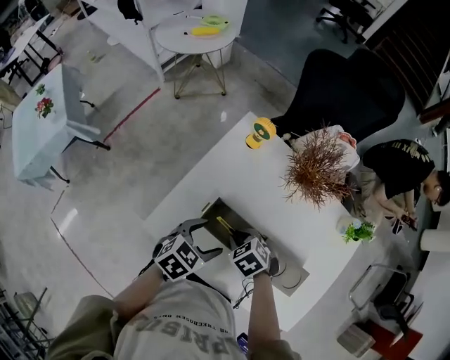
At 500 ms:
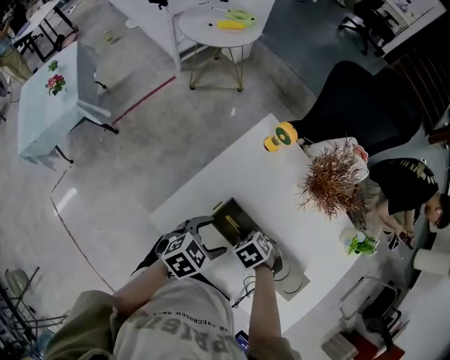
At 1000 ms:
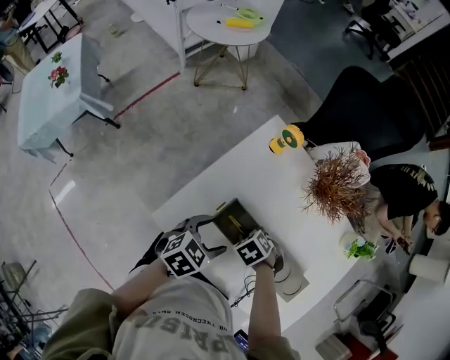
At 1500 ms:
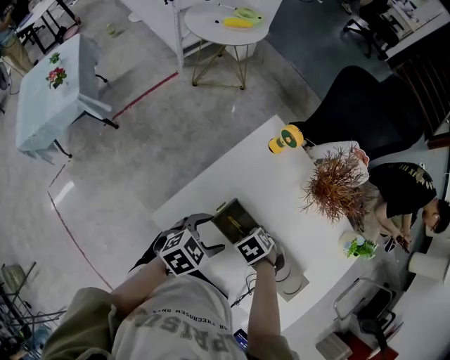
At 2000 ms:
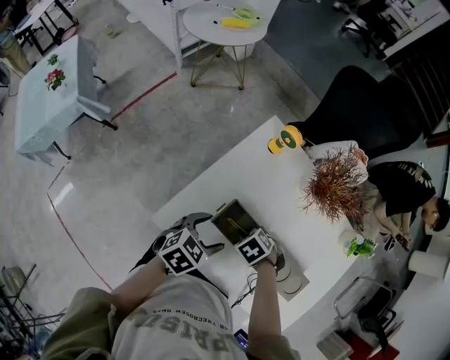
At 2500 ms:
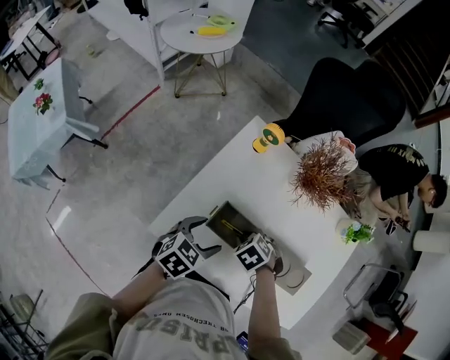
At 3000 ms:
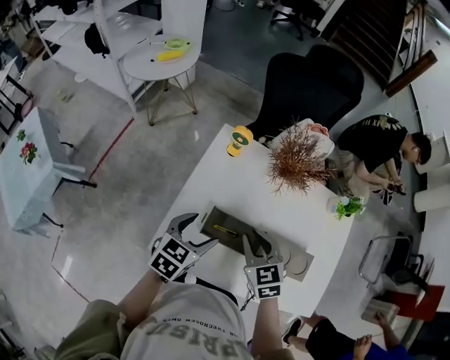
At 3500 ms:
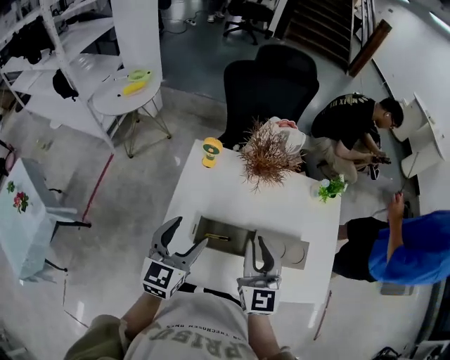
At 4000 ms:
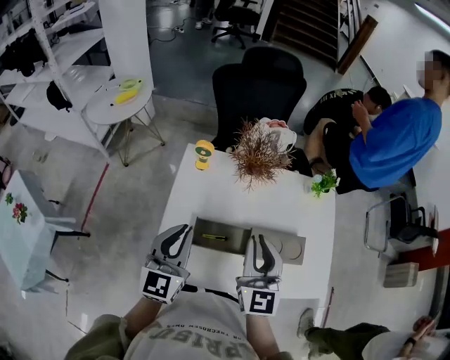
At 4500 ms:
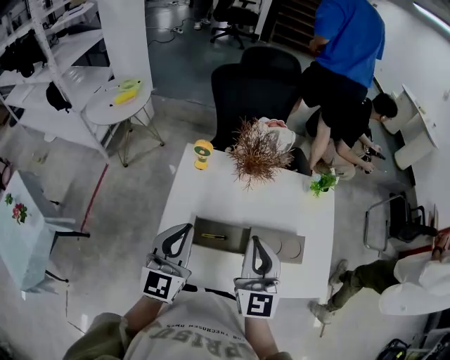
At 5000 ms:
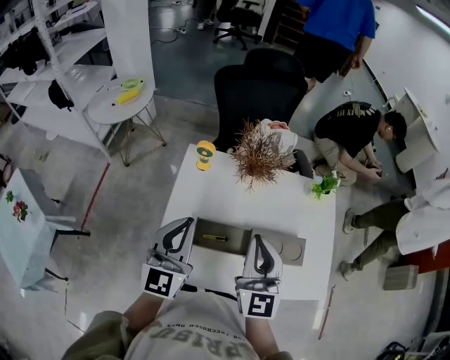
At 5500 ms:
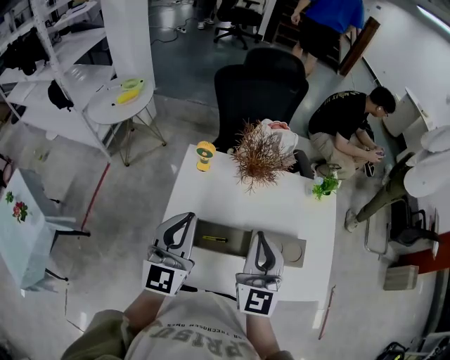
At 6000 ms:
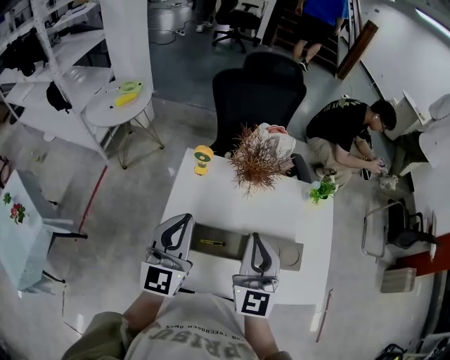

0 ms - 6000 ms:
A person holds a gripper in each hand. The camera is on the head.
0 ms - 2000 ms: The grippers stay close to where they were, moving slightly.
2000 ms - 4000 ms: The left gripper heads upward, covering some 20 cm, tips its fingers upward by roughly 40 degrees, and closes. The right gripper travels upward by roughly 30 cm, and tilts its fingers about 80 degrees upward.
4000 ms - 6000 ms: The left gripper heads upward, covering some 5 cm.

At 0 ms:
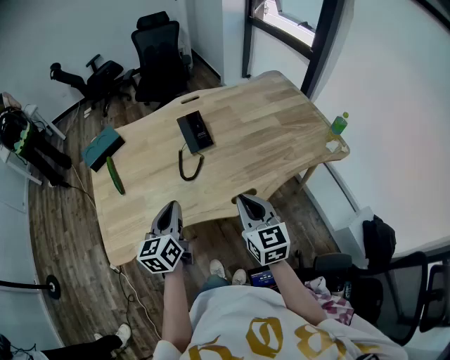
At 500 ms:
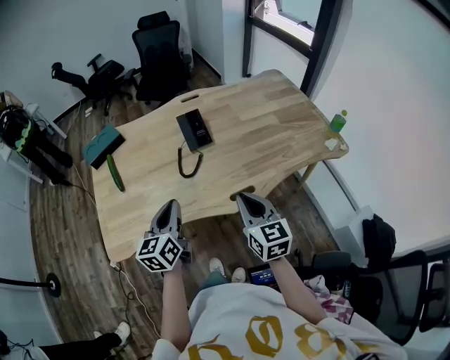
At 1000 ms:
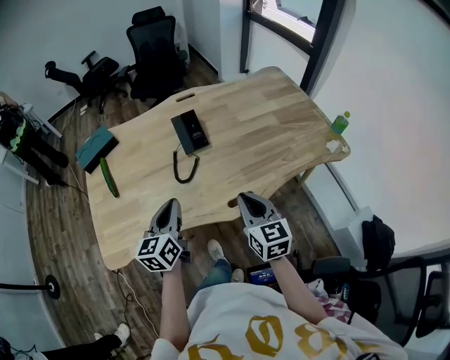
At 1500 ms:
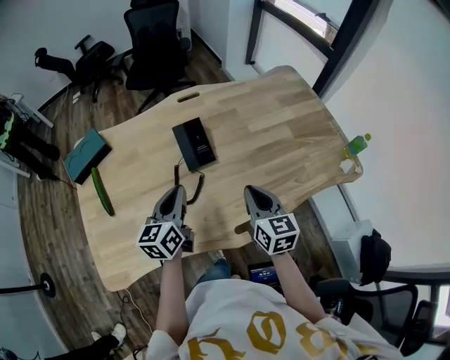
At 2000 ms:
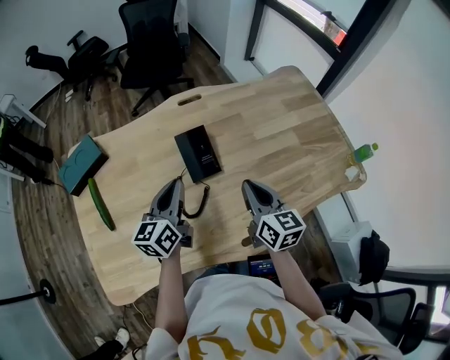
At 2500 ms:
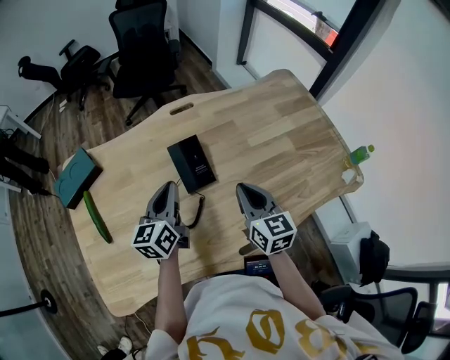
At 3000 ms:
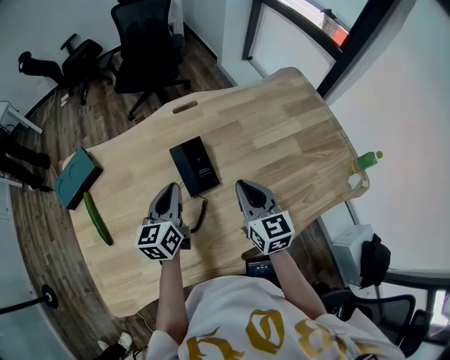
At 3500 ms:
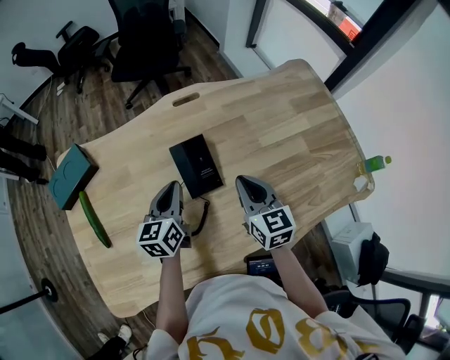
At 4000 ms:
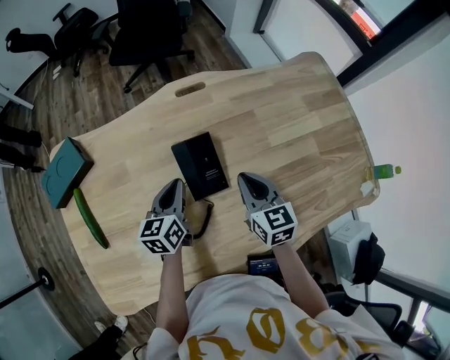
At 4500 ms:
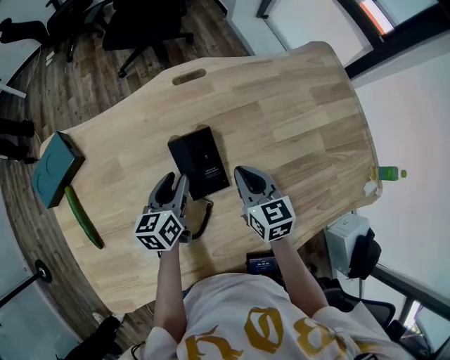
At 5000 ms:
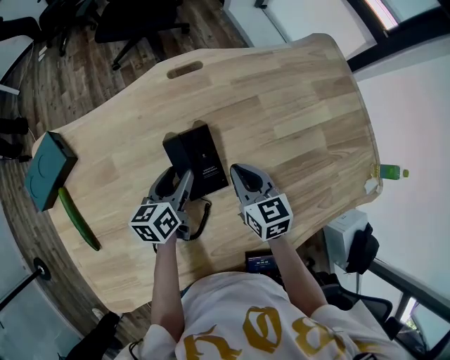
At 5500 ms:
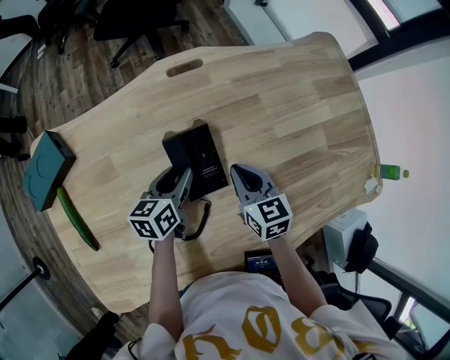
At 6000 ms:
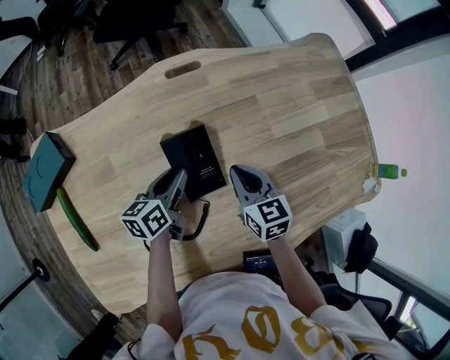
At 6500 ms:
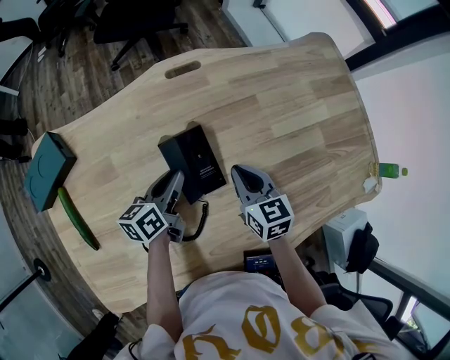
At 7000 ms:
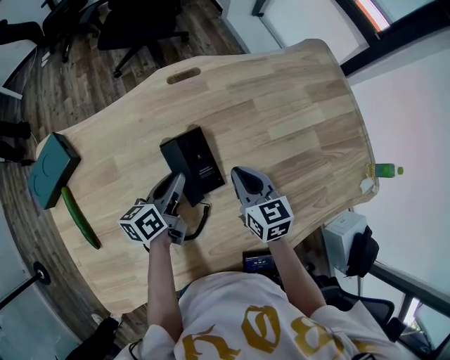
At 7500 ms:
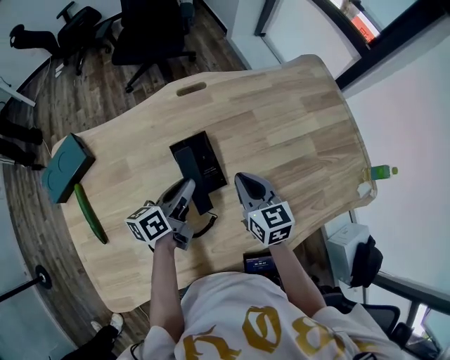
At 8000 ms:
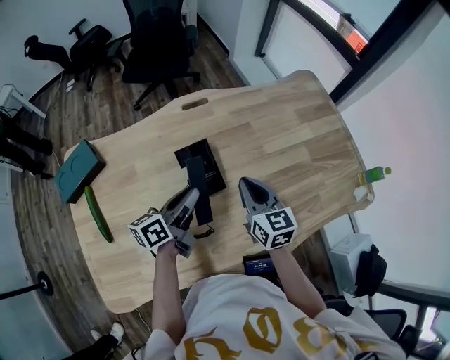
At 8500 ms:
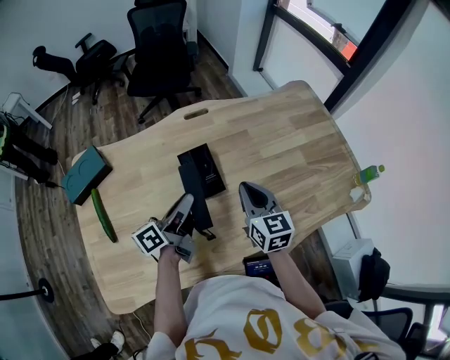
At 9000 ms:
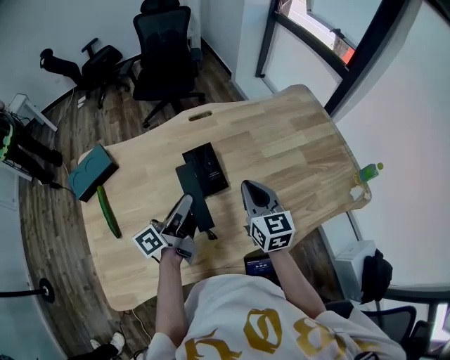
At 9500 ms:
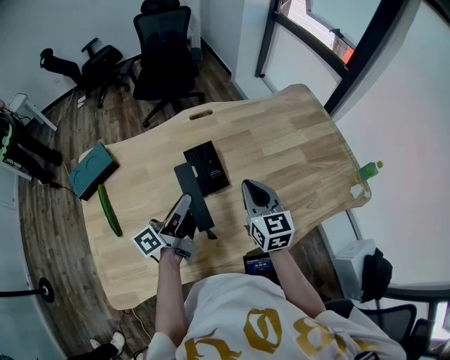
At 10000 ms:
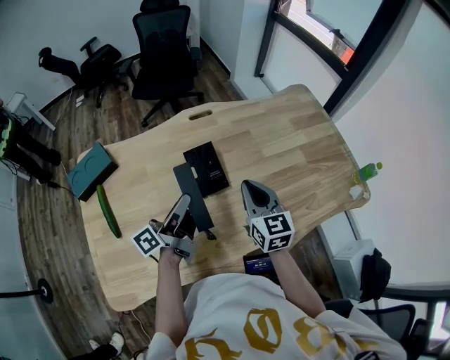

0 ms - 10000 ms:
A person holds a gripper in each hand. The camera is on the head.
0 ms - 2000 ms: Both grippers travel together forward, approximately 25 cm.
2000 ms - 4000 ms: The left gripper travels downward and forward by approximately 15 cm. The right gripper heads forward and downward, covering roughly 15 cm.
4000 ms - 6000 ms: The left gripper moves some 5 cm, changes its angle by approximately 20 degrees, and opens its fingers. Meanwhile the right gripper travels downward by about 5 cm.
6000 ms - 8000 ms: The left gripper travels upward and backward by about 15 cm. The right gripper goes approximately 10 cm upward.
8000 ms - 10000 ms: The left gripper moves backward, some 5 cm, and changes its angle by some 30 degrees, while the right gripper ends up approximately 5 cm from where it was.

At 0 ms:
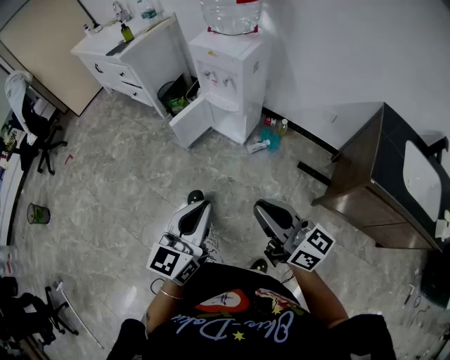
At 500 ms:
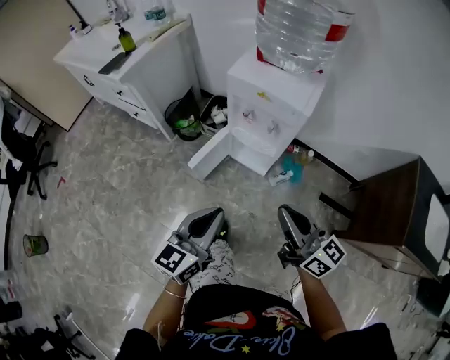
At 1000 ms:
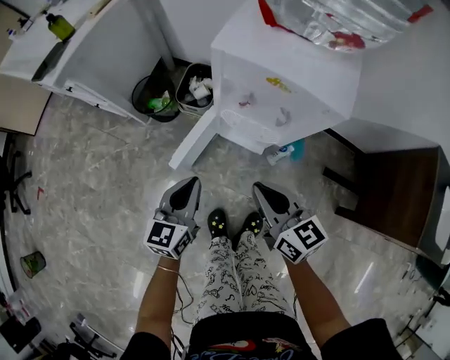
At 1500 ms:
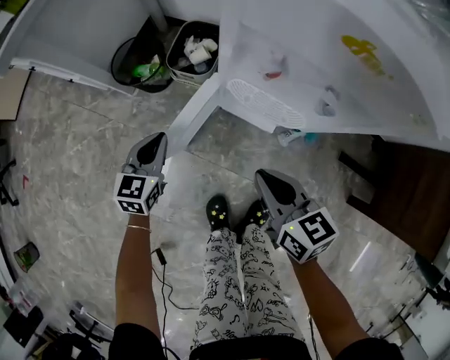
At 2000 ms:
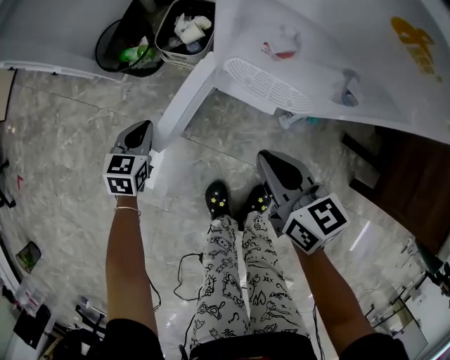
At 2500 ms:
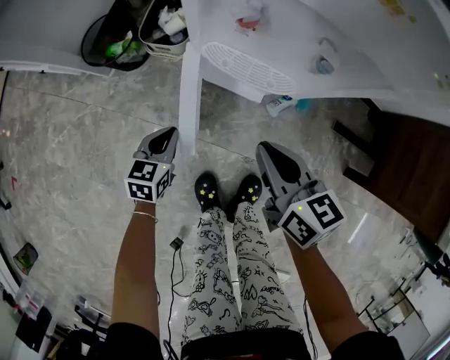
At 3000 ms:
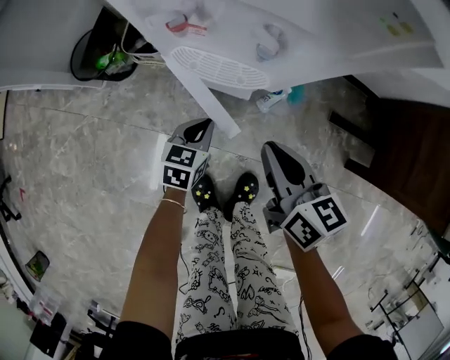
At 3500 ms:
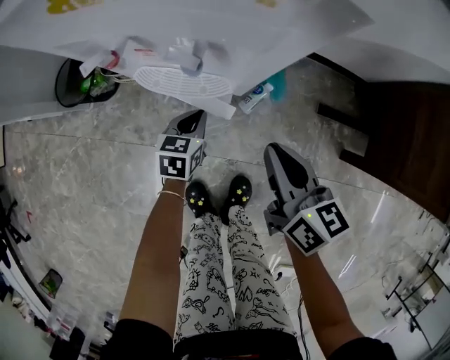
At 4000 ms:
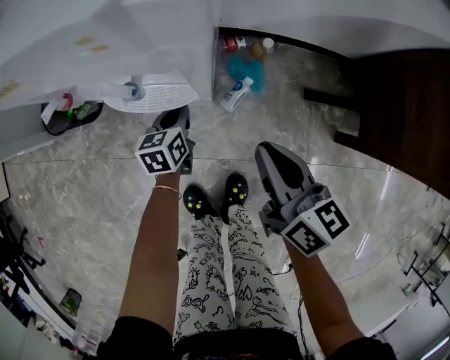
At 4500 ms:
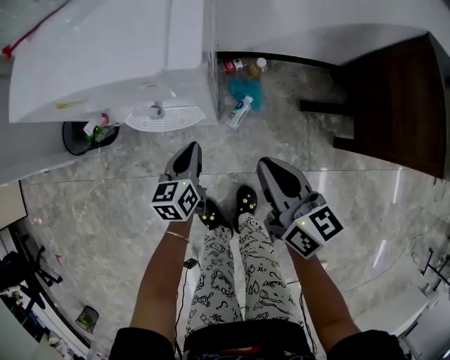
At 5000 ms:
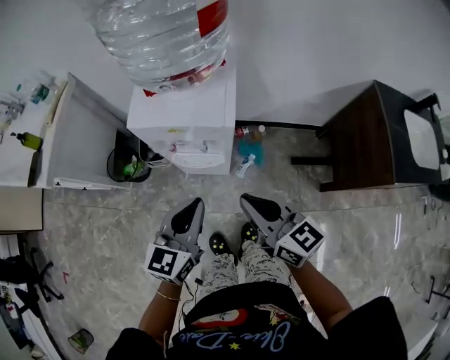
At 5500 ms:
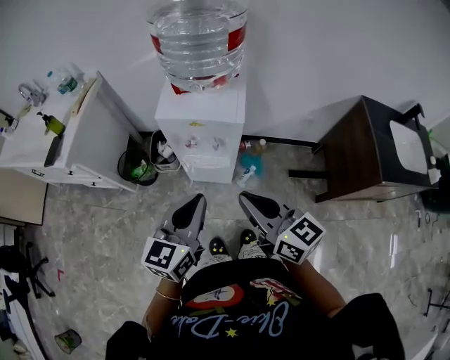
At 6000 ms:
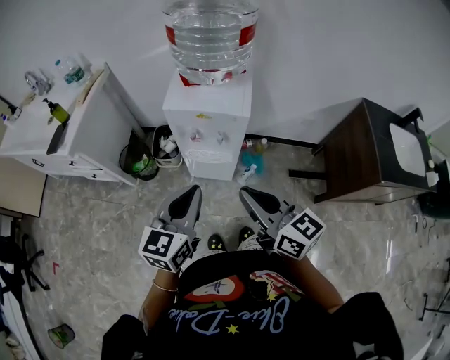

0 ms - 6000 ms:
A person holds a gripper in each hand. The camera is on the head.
0 ms - 2000 ms: The pair of grippers is taken forward and to the left, some 60 cm. The grippers both shift downward by about 40 cm. The left gripper tips its fingers downward by roughly 40 degrees. Meanwhile the right gripper angles its fingers downward, by about 40 degrees.
2000 ms - 4000 ms: The two grippers go about 30 cm to the right. The right gripper changes its angle by approximately 30 degrees.
4000 ms - 6000 ms: The left gripper moves upward and backward, about 60 cm, and changes its angle by about 30 degrees, while the right gripper moves upward, backward and to the left, about 40 cm, and rotates some 30 degrees.

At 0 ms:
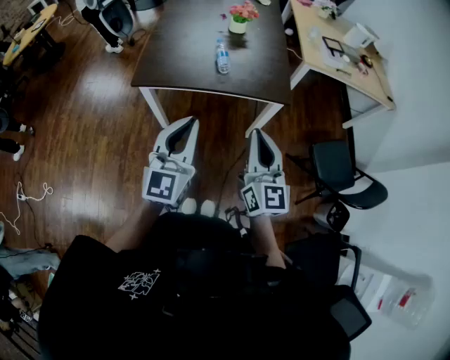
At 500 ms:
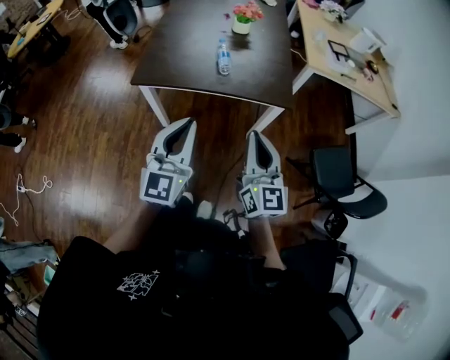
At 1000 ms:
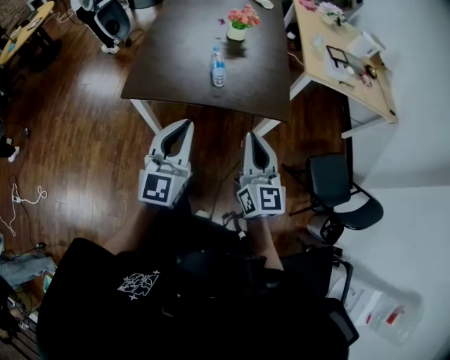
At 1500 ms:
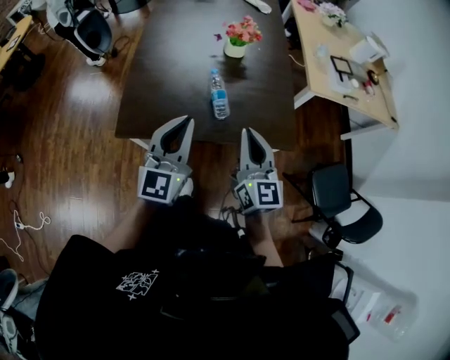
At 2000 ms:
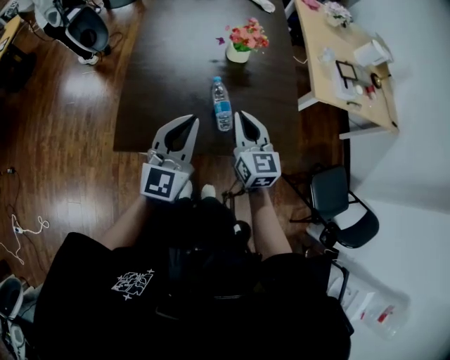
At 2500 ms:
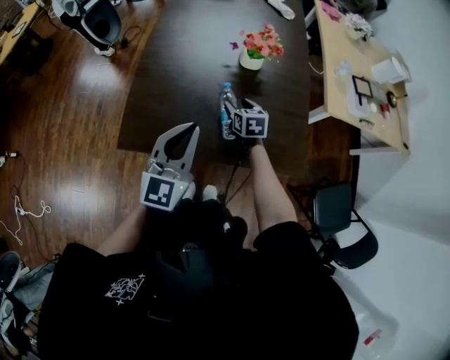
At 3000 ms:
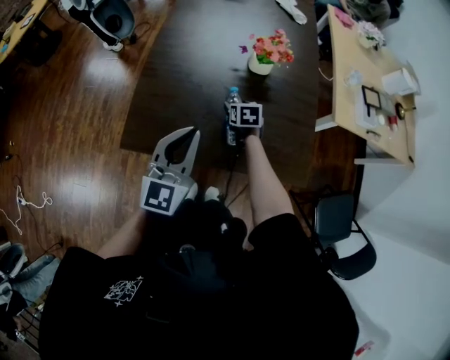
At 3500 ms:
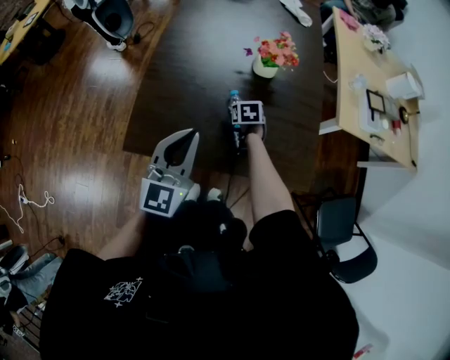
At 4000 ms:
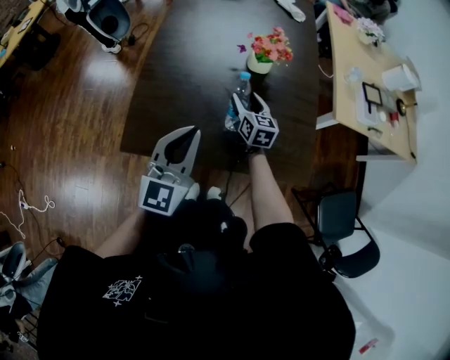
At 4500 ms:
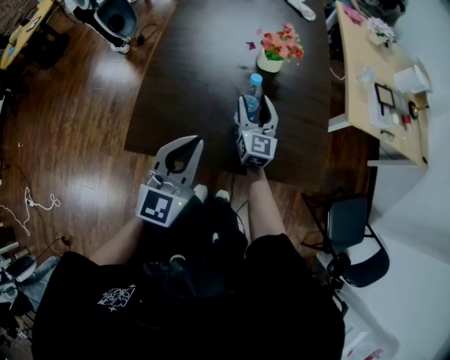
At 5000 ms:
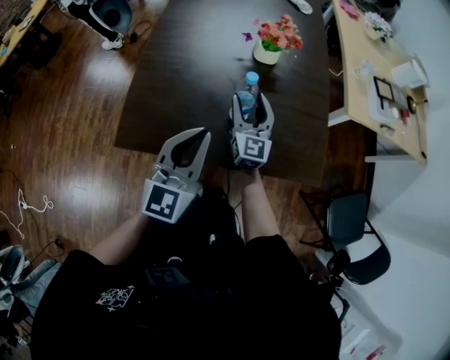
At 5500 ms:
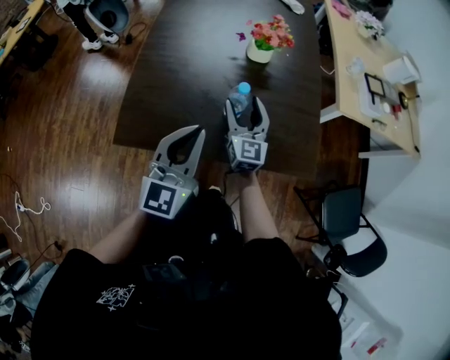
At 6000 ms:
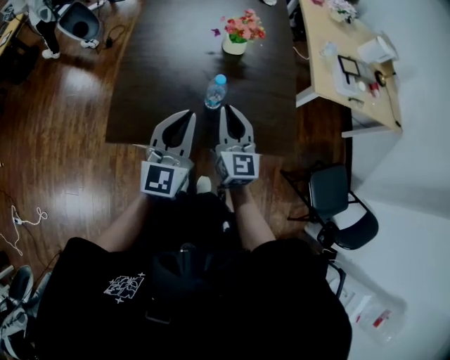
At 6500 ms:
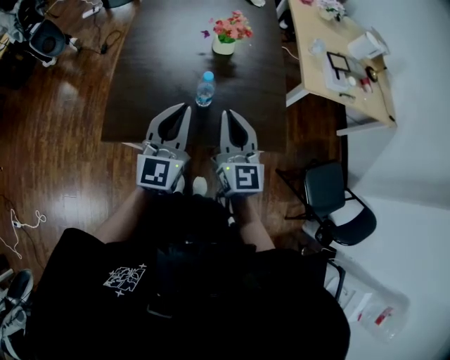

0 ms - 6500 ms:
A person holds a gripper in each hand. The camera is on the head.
0 ms - 2000 ms: Both grippers move forward, some 40 cm.
2000 ms - 4500 ms: The right gripper heads forward and downward, covering about 15 cm, and opens.
4500 ms - 6500 ms: The left gripper heads to the right, covering roughly 5 cm; the right gripper heads backward and upward, covering approximately 25 cm, and closes up.
